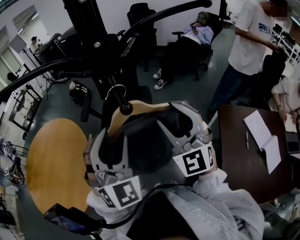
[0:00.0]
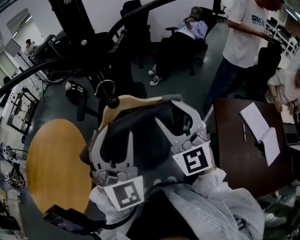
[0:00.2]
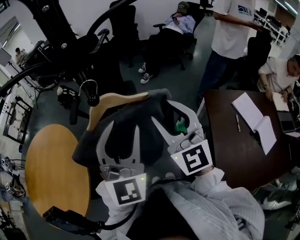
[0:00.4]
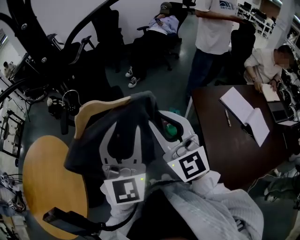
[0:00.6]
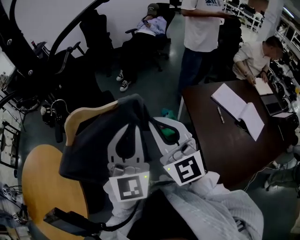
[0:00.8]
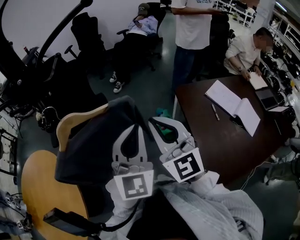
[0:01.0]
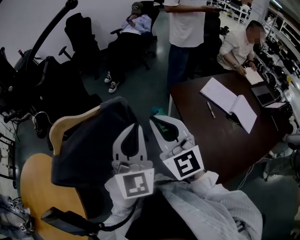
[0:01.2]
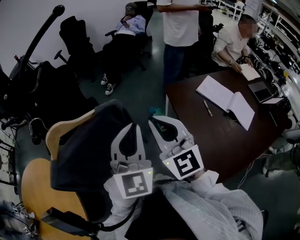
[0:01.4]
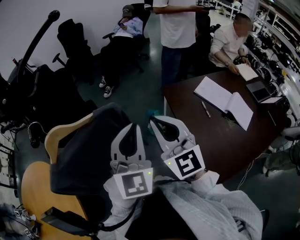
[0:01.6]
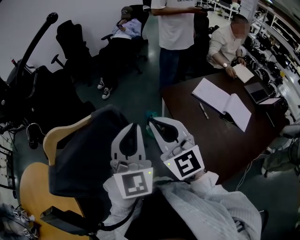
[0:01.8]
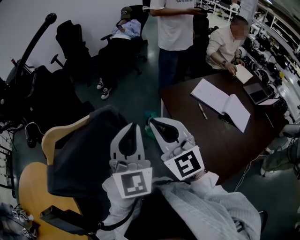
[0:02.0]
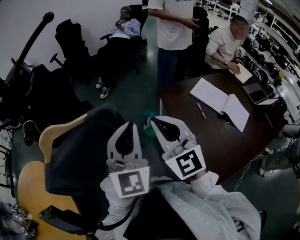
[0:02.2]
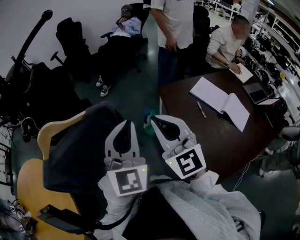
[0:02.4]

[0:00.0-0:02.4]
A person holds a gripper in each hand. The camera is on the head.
0:00.0 to 0:01.2: The left gripper shifts by about 25 cm, changes its angle by some 40 degrees, and closes up. The right gripper moves roughly 20 cm, turns by about 30 degrees, and closes.
0:01.2 to 0:02.4: The right gripper shifts some 5 cm to the right.

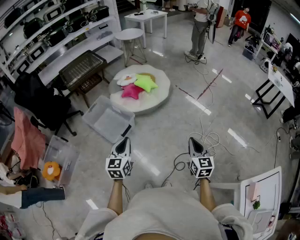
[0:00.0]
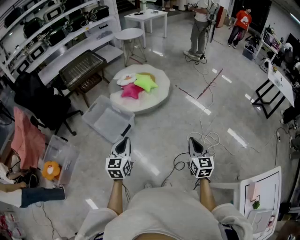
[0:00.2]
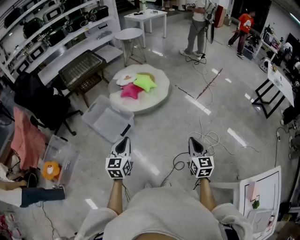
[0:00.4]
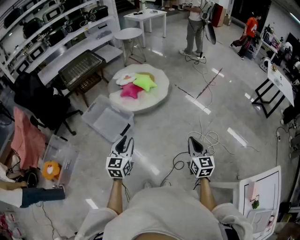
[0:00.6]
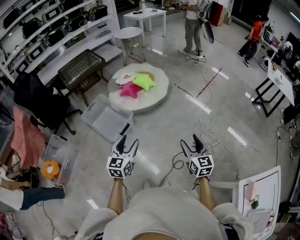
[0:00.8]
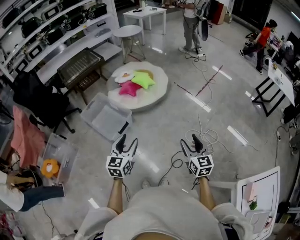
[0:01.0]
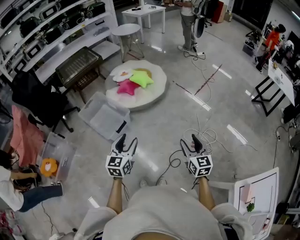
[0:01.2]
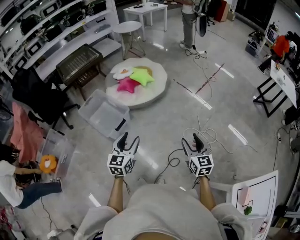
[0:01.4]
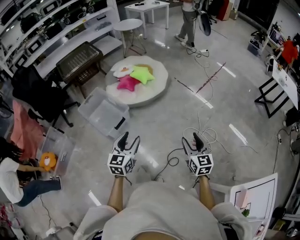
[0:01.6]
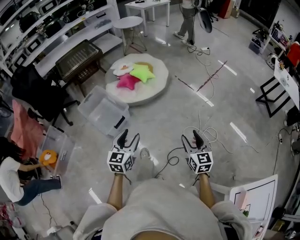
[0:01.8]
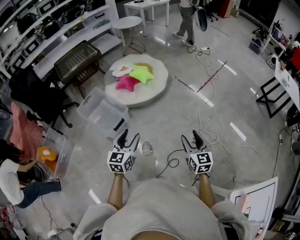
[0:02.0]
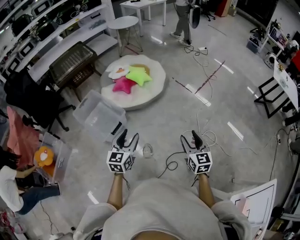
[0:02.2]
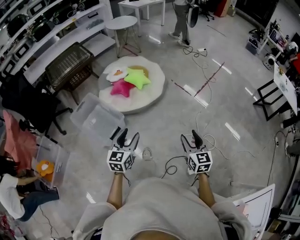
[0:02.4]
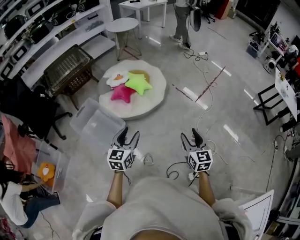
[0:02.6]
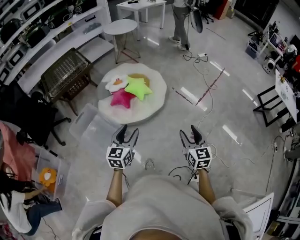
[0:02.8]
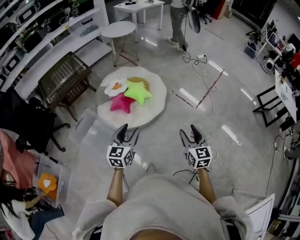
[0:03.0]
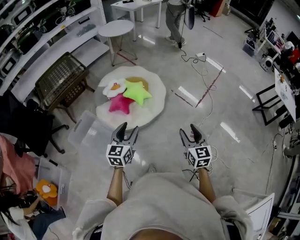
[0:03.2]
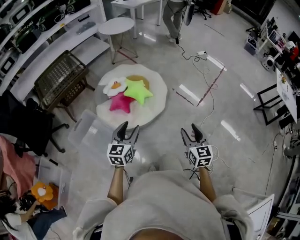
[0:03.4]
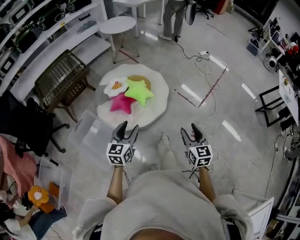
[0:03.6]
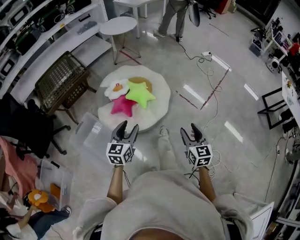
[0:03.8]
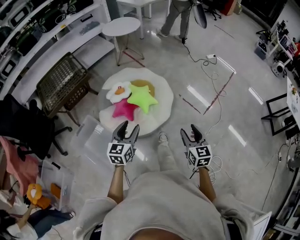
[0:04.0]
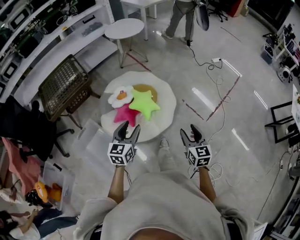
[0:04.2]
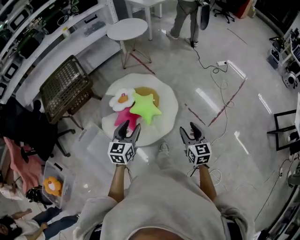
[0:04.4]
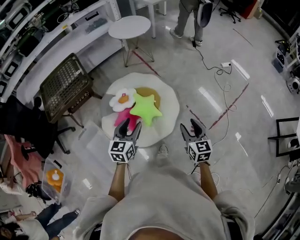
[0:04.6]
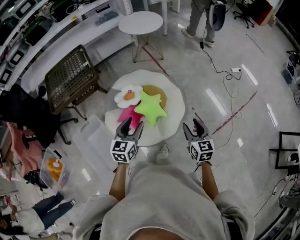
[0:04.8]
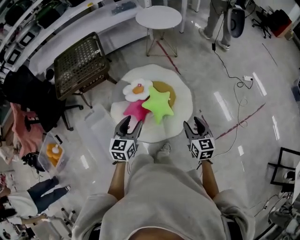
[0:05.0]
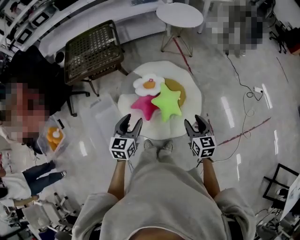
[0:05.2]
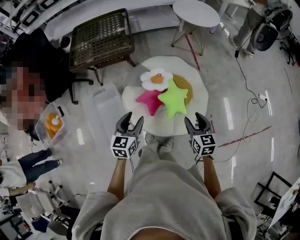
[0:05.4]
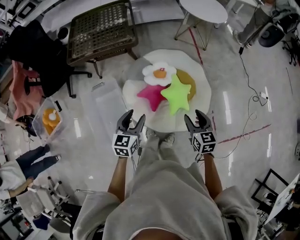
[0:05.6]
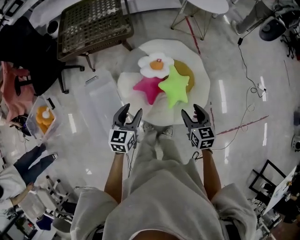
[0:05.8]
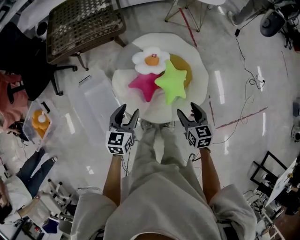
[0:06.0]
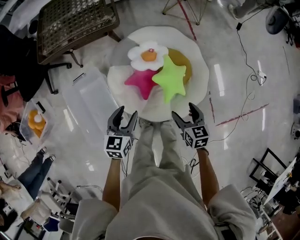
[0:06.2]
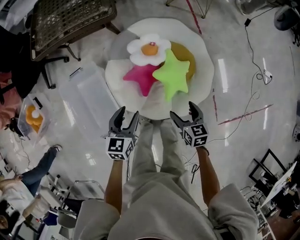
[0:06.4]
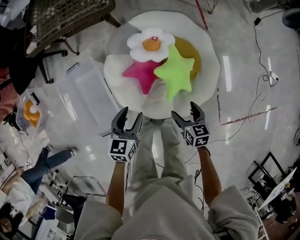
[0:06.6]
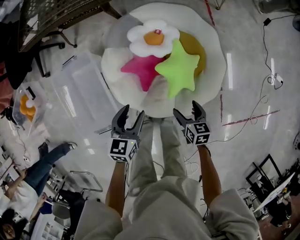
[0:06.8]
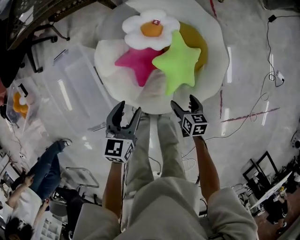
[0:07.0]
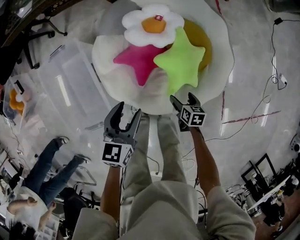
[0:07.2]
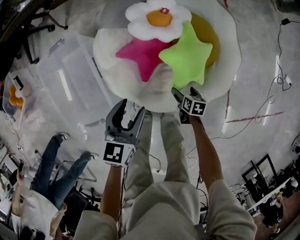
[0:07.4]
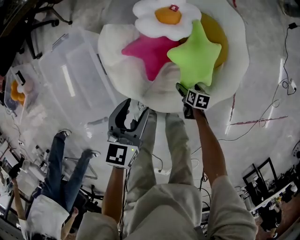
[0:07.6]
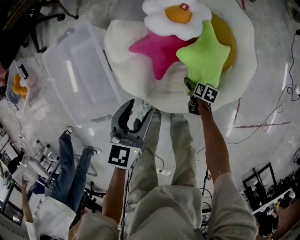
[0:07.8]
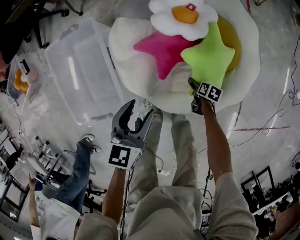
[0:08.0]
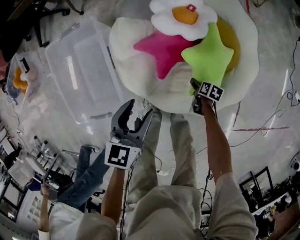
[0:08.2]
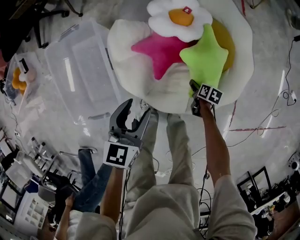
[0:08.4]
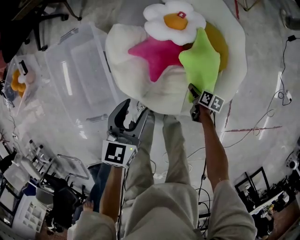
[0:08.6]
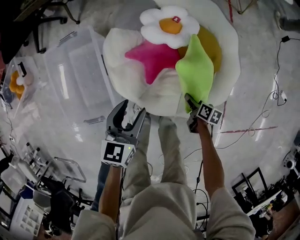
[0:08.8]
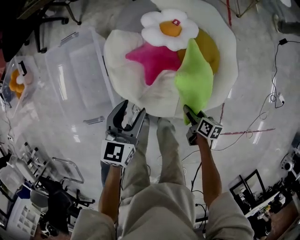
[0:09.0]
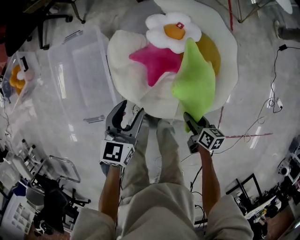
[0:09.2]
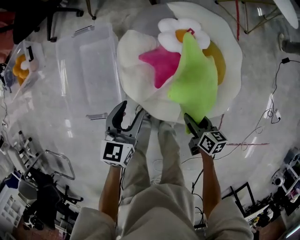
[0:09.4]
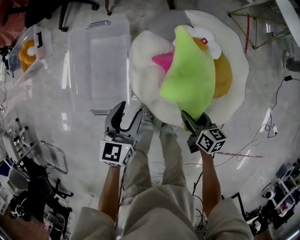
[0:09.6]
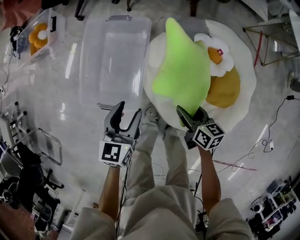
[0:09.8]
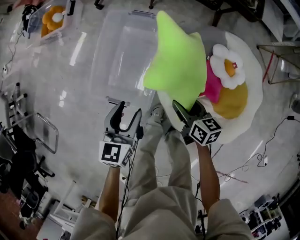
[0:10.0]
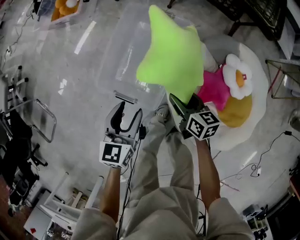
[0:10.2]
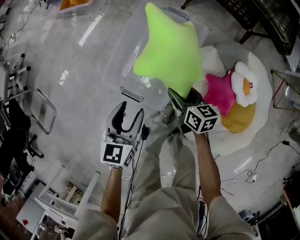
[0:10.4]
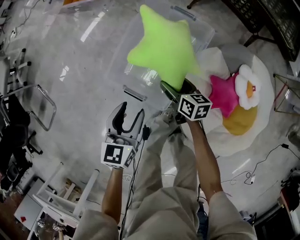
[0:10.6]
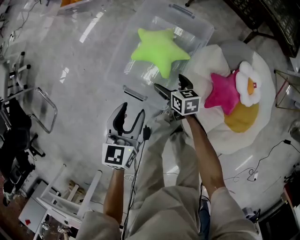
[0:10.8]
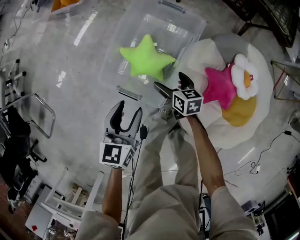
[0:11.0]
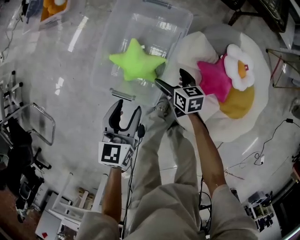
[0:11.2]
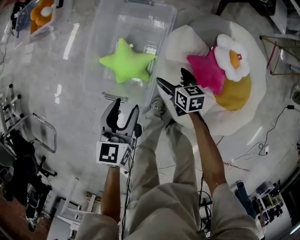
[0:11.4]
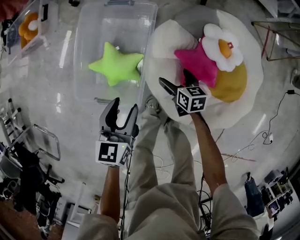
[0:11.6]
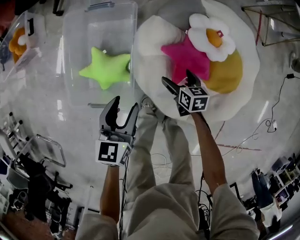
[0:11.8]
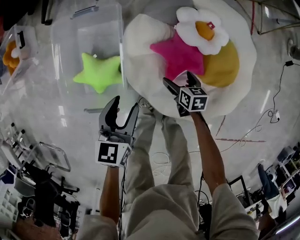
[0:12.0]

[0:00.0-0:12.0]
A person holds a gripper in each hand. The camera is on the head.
0:00.0 to 0:01.6: The right gripper heads to the right, covering roughly 10 cm, and opens up; the left gripper goes roughly 10 cm to the right, and opens up.
0:01.6 to 0:03.0: The pair of grippers is taken forward, about 40 cm.
0:03.0 to 0:04.4: Both grippers travel together forward, about 35 cm.
0:04.4 to 0:06.0: The right gripper changes place by some 40 cm, and turns by about 30 degrees. The left gripper moves some 30 cm, and rotates some 30 degrees.
0:06.0 to 0:07.6: The left gripper is displaced downward by approximately 30 cm. The right gripper heads downward, covering approximately 60 cm, changes its angle by some 40 degrees, and opens its fingers.
0:07.6 to 0:09.0: The right gripper is displaced upward by approximately 20 cm, and closes. Meanwhile the left gripper goes about 5 cm upward.
0:09.0 to 0:10.4: The left gripper changes place by roughly 40 cm, and swivels some 40 degrees, while the right gripper moves some 50 cm, and twists roughly 50 degrees counterclockwise, seen from behind.
0:10.4 to 0:12.0: The left gripper shifts by approximately 25 cm, and changes its angle by approximately 30 degrees; the right gripper shifts by roughly 35 cm, rotates some 30 degrees, and opens its fingers.

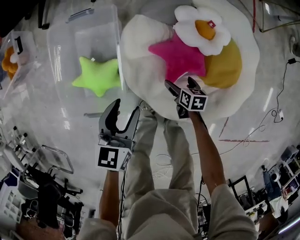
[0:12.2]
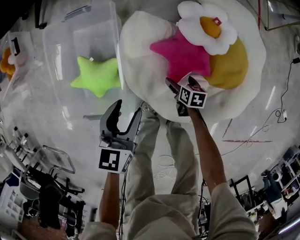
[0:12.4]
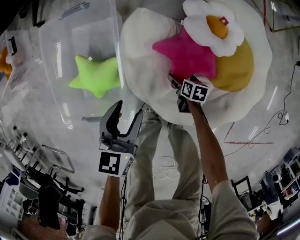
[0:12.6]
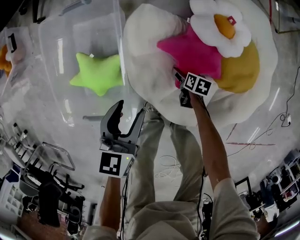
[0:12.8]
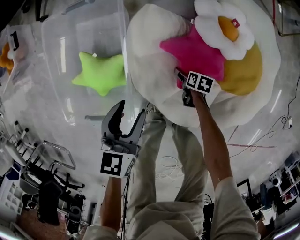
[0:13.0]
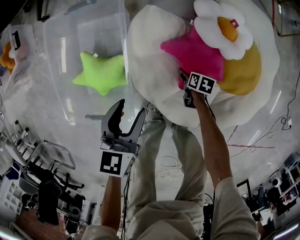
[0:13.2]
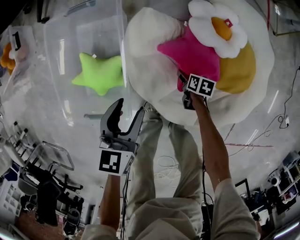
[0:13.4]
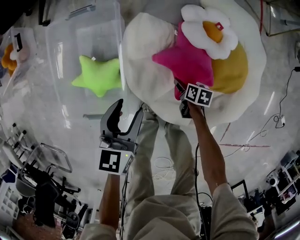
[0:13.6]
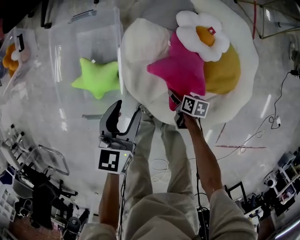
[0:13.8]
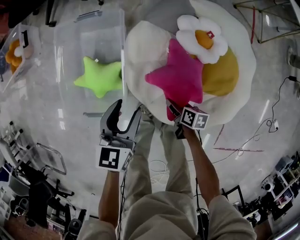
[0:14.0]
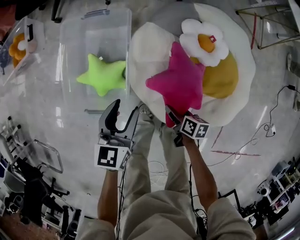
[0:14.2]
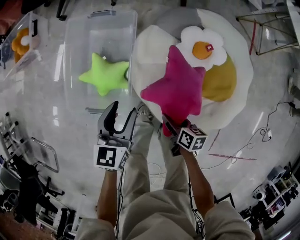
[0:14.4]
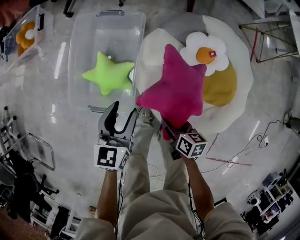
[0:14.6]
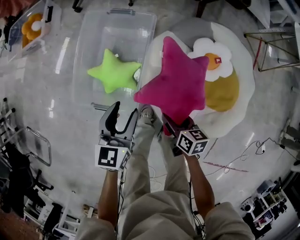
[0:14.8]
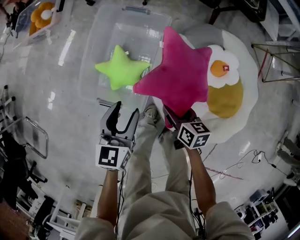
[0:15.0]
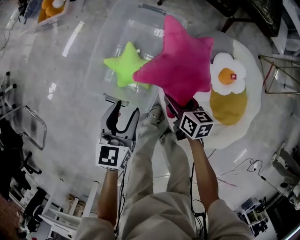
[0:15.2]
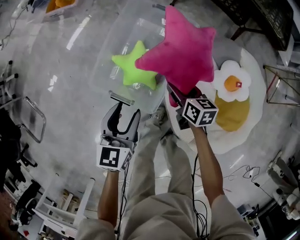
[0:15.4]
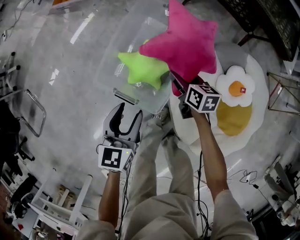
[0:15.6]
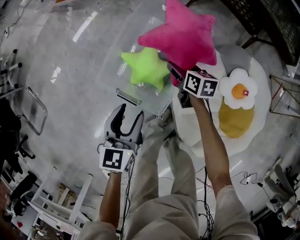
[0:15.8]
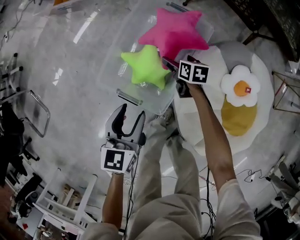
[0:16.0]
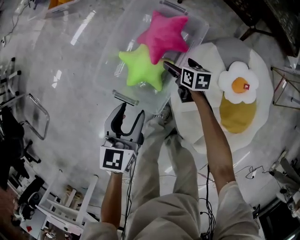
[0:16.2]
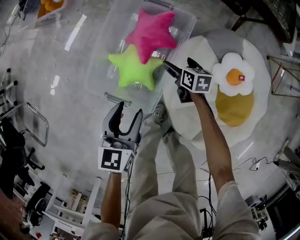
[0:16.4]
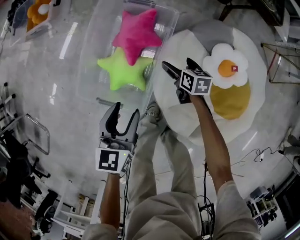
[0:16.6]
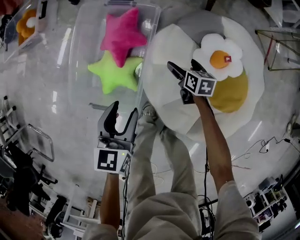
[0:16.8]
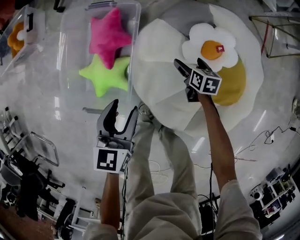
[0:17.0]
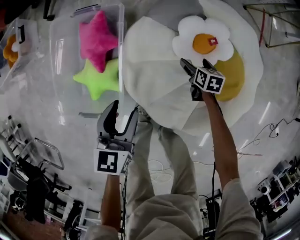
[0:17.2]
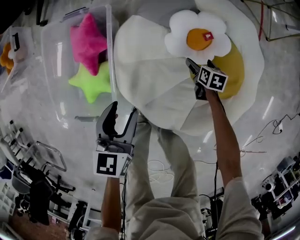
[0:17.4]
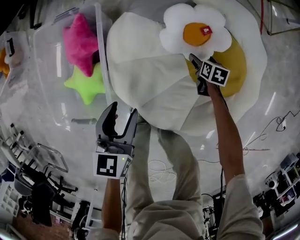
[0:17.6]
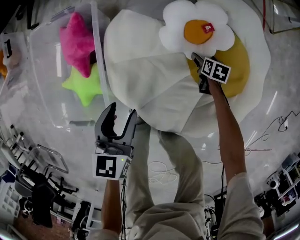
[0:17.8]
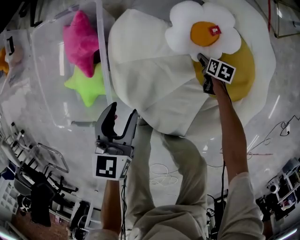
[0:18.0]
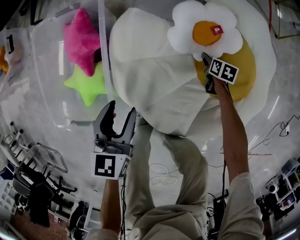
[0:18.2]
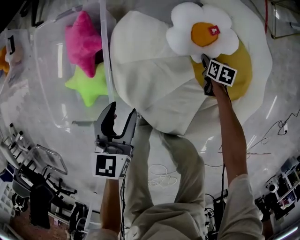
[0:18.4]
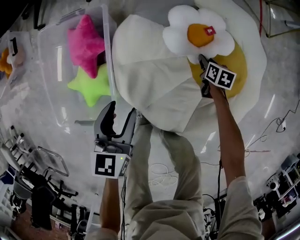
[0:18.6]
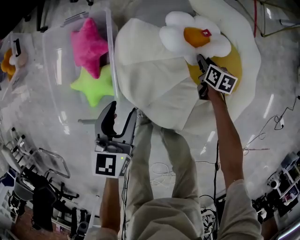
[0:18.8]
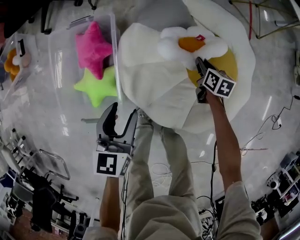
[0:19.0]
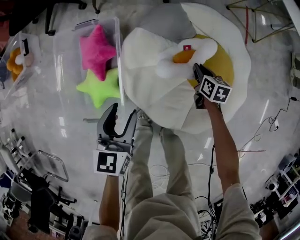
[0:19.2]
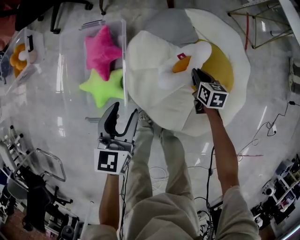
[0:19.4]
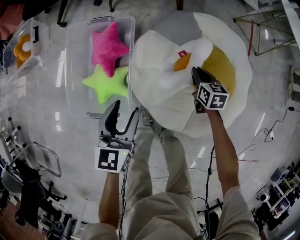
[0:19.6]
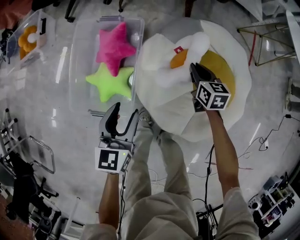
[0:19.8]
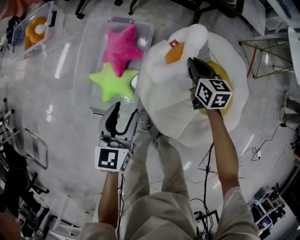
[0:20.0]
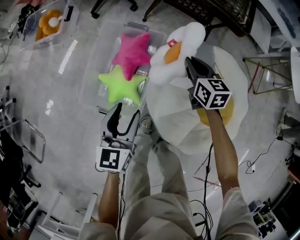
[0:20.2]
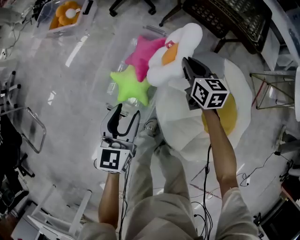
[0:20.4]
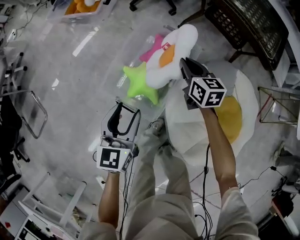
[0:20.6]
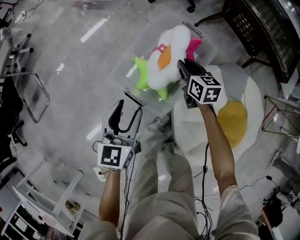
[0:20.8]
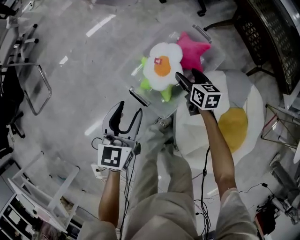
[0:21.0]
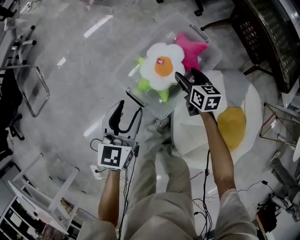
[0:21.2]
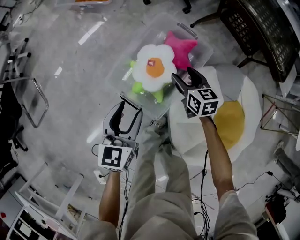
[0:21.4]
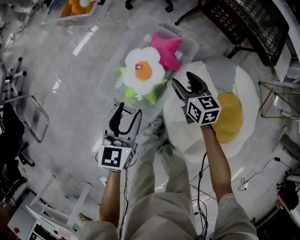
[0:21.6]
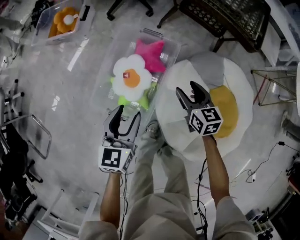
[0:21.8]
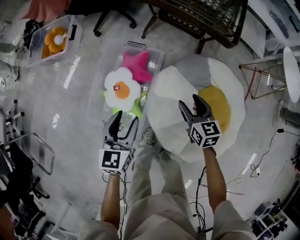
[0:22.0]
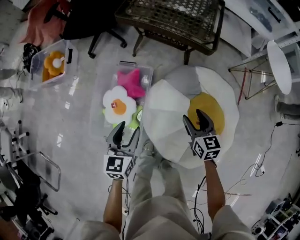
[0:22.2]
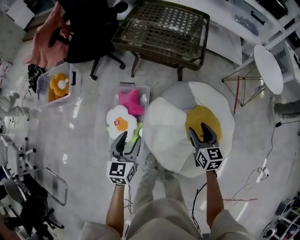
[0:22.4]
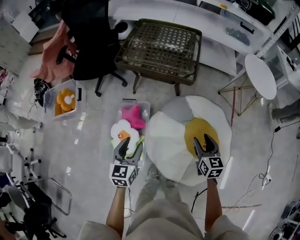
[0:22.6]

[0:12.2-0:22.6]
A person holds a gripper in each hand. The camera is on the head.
0:12.2 to 0:13.6: The right gripper travels downward by about 5 cm, and closes its fingers. The left gripper moves approximately 10 cm downward and comes back.
0:13.6 to 0:15.2: The right gripper goes approximately 35 cm to the left and upward, and turns by some 40 degrees. Meanwhile the left gripper goes roughly 25 cm to the left and upward, and turns by approximately 30 degrees.
0:15.2 to 0:16.6: The left gripper moves approximately 5 cm. The right gripper goes roughly 20 cm downward, forward and to the right, and opens its fingers.
0:16.6 to 0:18.2: The right gripper ends up about 50 cm from where it was, rotates some 30 degrees, and closes up. Meanwhile the left gripper changes place by roughly 25 cm.
0:18.2 to 0:19.6: The left gripper travels upward by approximately 20 cm. Meanwhile the right gripper travels upward and to the left by roughly 35 cm, and changes its angle by approximately 30 degrees.
0:19.6 to 0:21.2: The right gripper goes upward and returns, approximately 20 cm each way, rotates approximately 40 degrees, and opens, while the left gripper shifts by approximately 30 cm, and changes its angle by roughly 40 degrees.
0:21.2 to 0:22.6: The right gripper moves roughly 60 cm, and rotates about 50 degrees. The left gripper ends up roughly 35 cm from where it was, and changes its angle by approximately 40 degrees.
